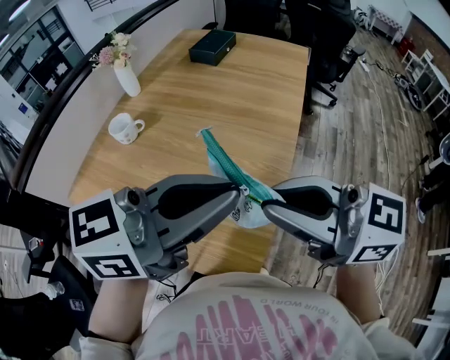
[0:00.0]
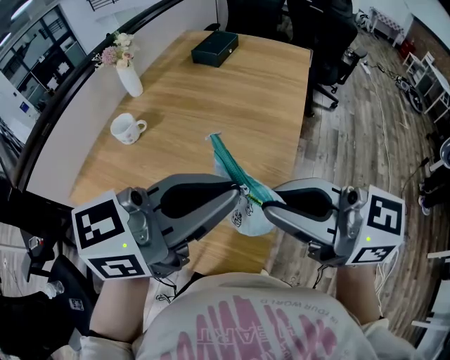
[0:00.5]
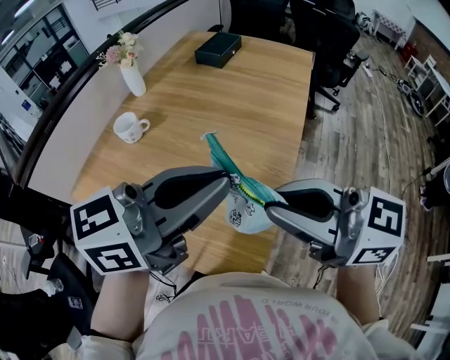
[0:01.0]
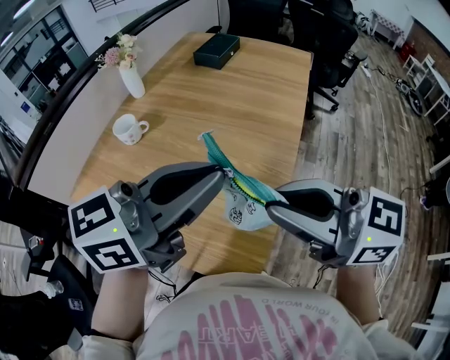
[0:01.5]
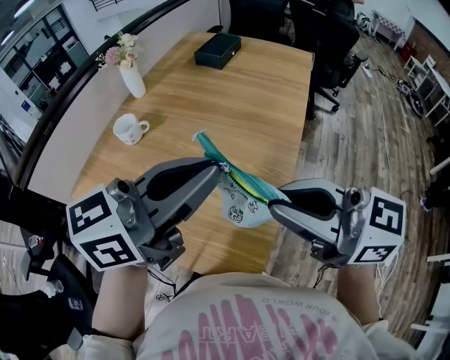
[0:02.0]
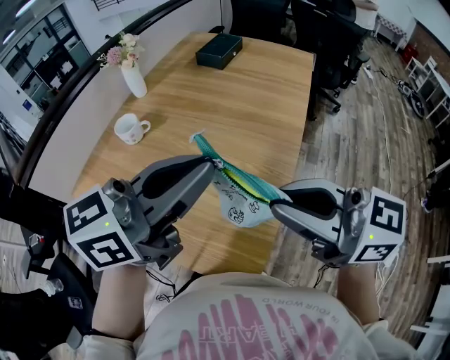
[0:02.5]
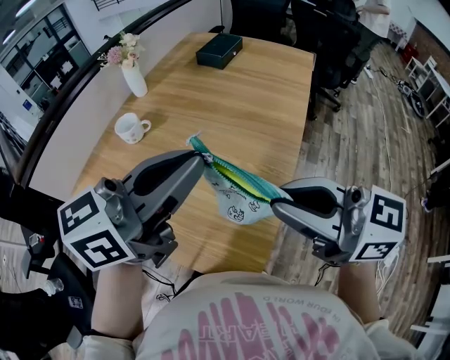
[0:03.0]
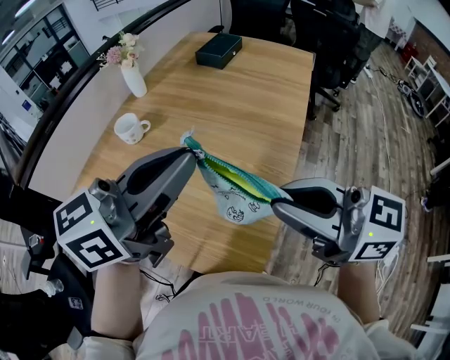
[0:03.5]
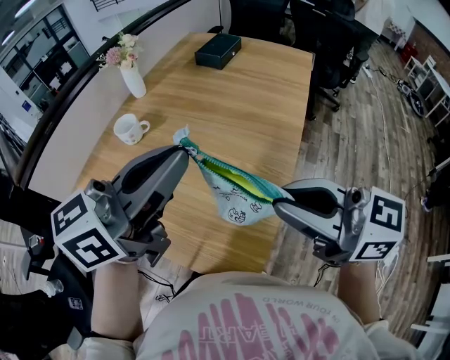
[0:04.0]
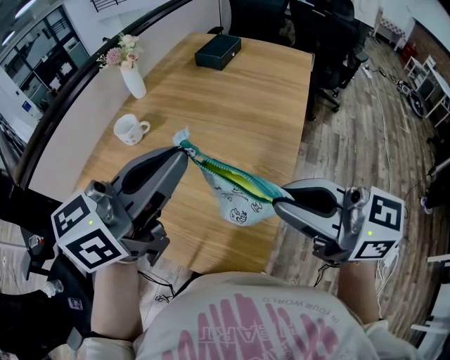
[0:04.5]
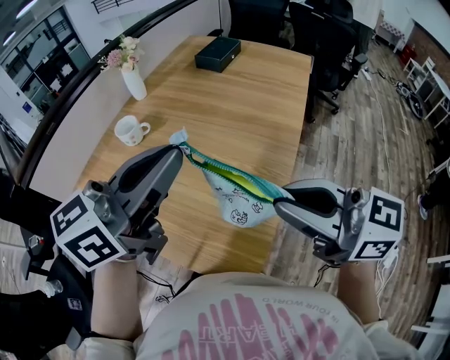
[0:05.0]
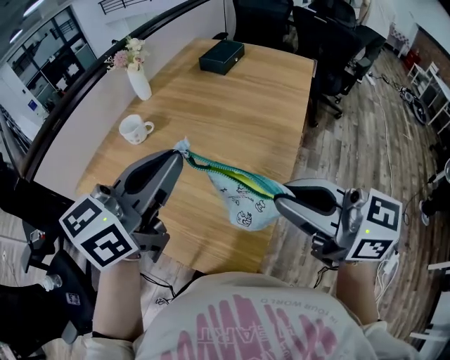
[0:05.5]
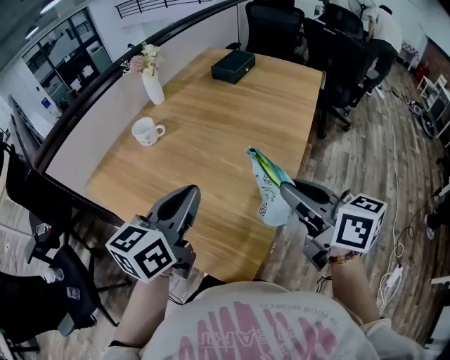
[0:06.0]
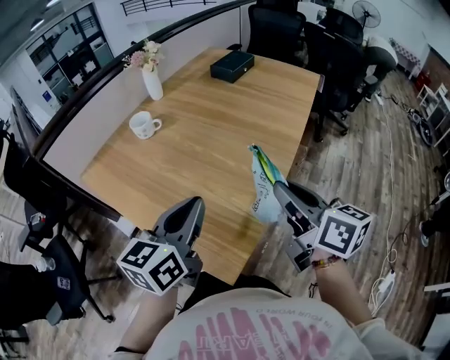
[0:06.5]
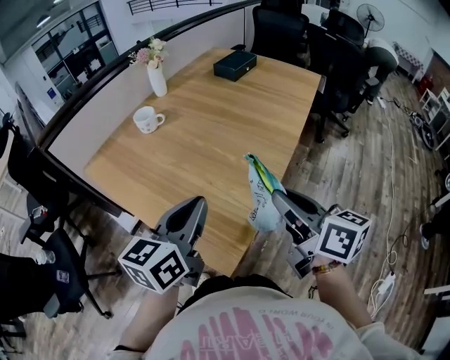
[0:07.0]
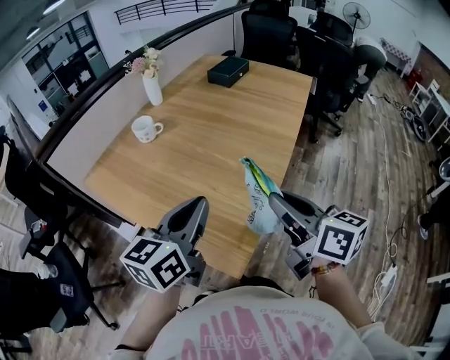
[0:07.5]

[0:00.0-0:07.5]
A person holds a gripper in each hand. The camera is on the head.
0:00.0 to 0:02.0: The grippers stay close to where they were, moving slightly.
0:02.0 to 0:04.0: The grippers move only a little.
0:04.0 to 0:05.5: The grippers make only small movements.
0:05.5 to 0:07.5: The left gripper is displaced backward and downward by roughly 15 cm. Meanwhile the right gripper travels downward by about 5 cm, and swivels approximately 30 degrees.

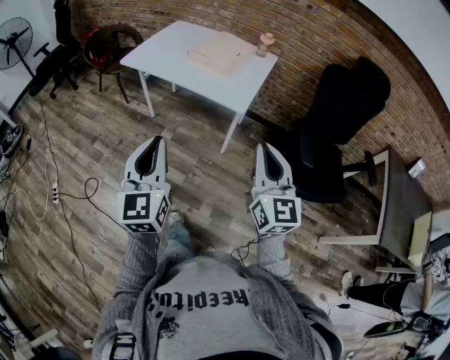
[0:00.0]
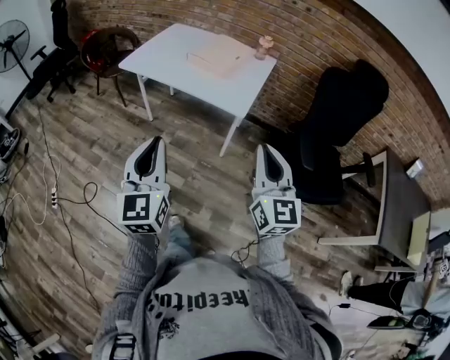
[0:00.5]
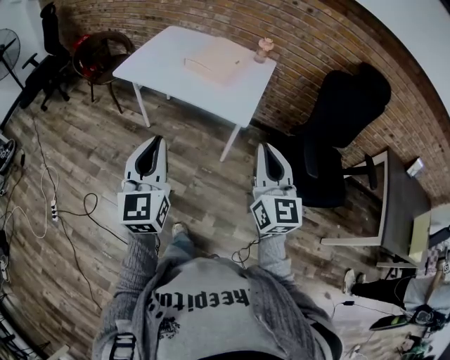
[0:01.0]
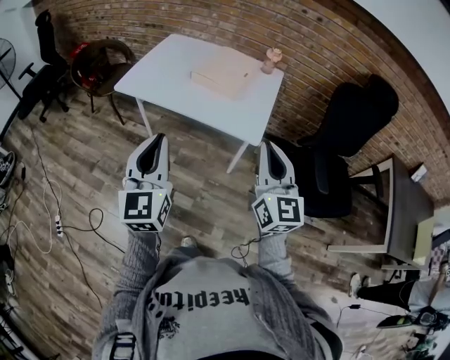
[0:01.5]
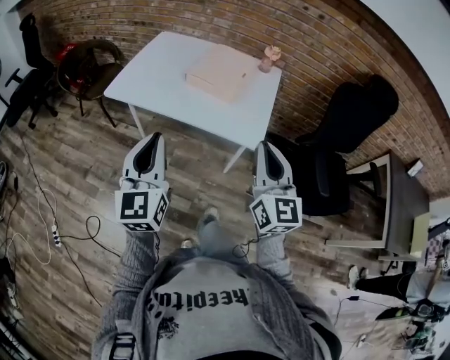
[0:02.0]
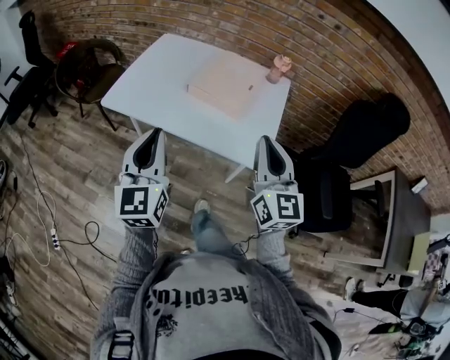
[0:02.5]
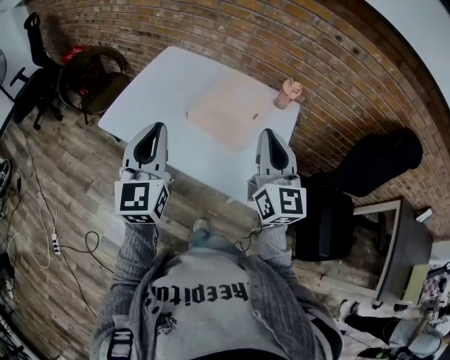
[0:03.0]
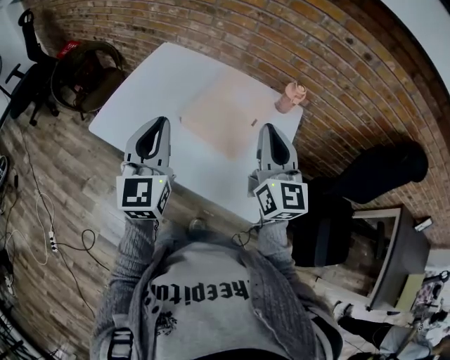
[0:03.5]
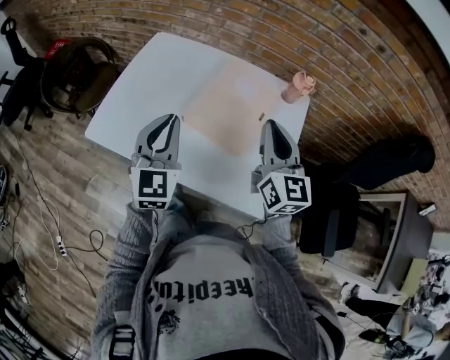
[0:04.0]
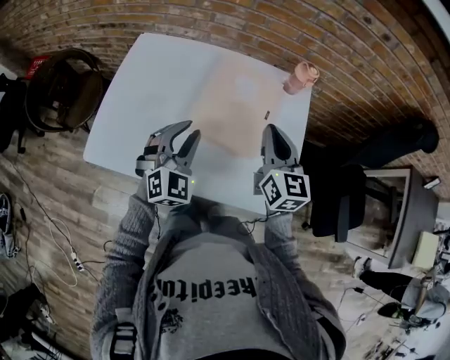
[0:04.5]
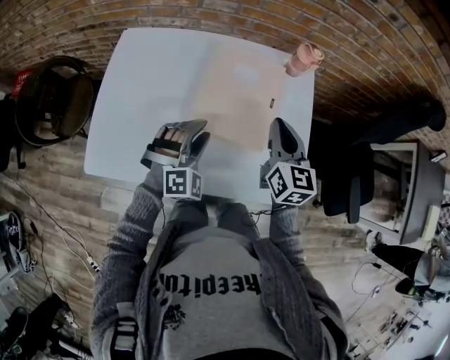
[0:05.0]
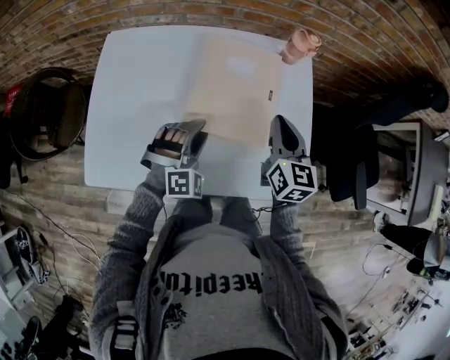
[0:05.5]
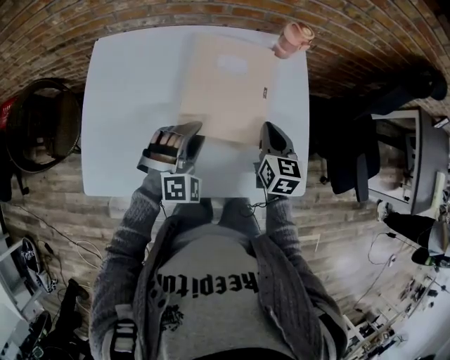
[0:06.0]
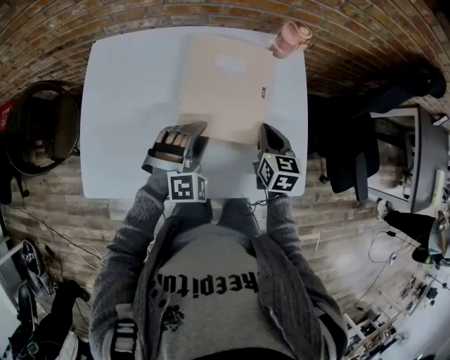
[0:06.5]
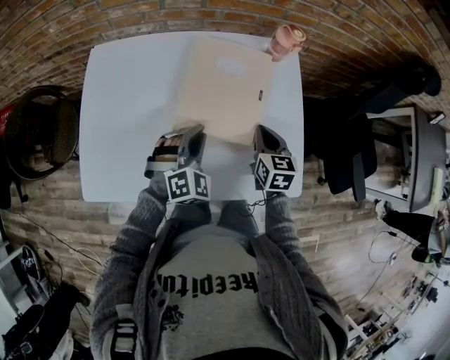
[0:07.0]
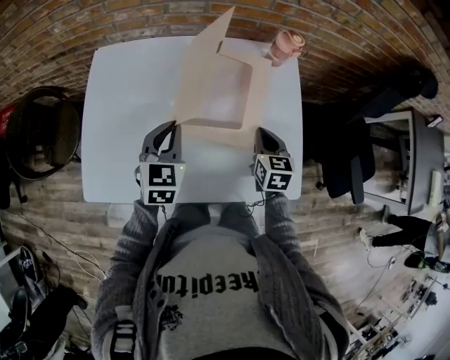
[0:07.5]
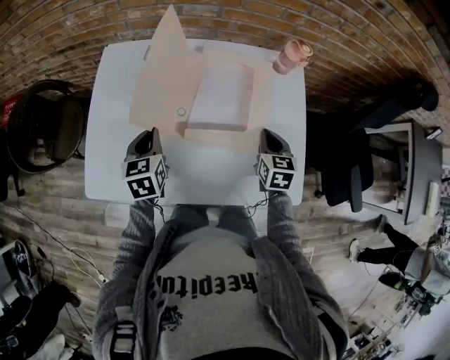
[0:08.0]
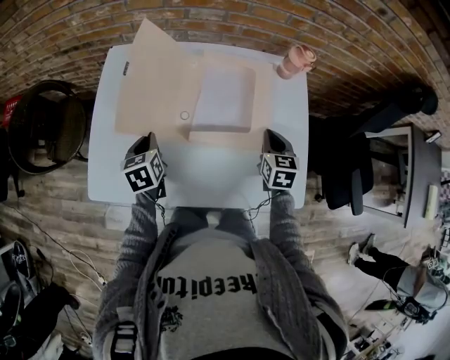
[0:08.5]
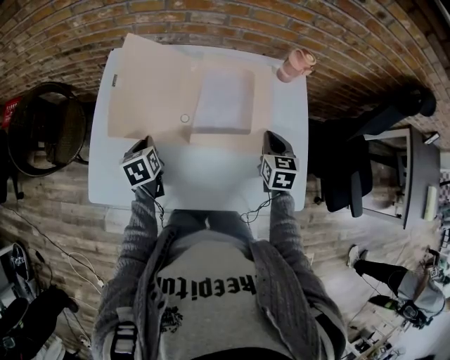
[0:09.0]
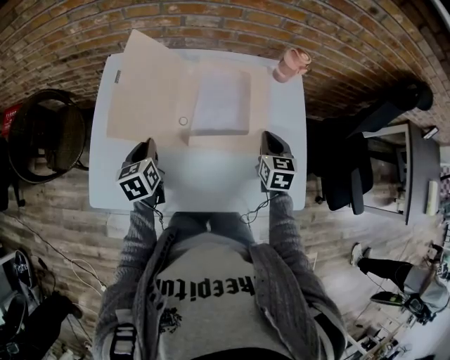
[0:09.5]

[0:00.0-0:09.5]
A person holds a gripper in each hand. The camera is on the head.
0:00.0 to 0:02.0: Both grippers travel together forward and to the left, approximately 25 cm.
0:02.0 to 0:04.0: Both grippers travel together forward, about 40 cm.
0:04.0 to 0:05.5: The two grippers go roughly 15 cm downward. The right gripper rotates approximately 30 degrees, while the left gripper rolls clockwise, seen from behind, by roughly 60 degrees, and opens its fingers.
0:05.5 to 0:07.5: The left gripper shifts about 10 cm to the left and upward, rotates around the line of its fingers by approximately 60 degrees, counterclockwise from behind, and closes its fingers. The right gripper travels downward by about 10 cm.
0:07.5 to 0:09.5: The left gripper is displaced to the left and downward by some 15 cm, and turns by approximately 40 degrees.

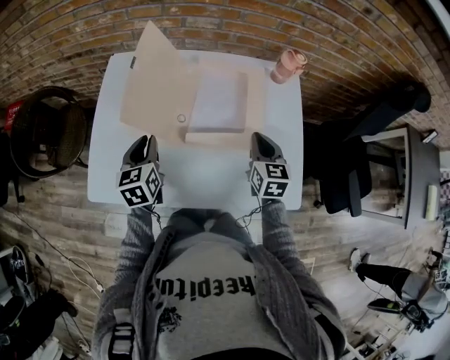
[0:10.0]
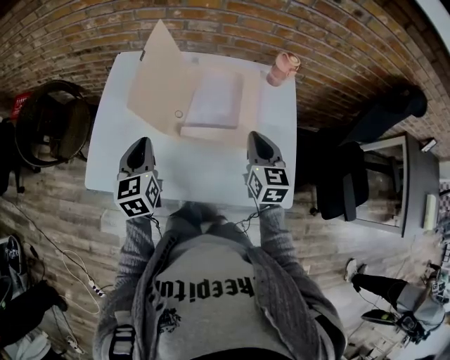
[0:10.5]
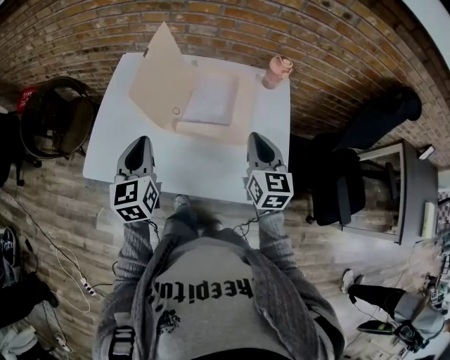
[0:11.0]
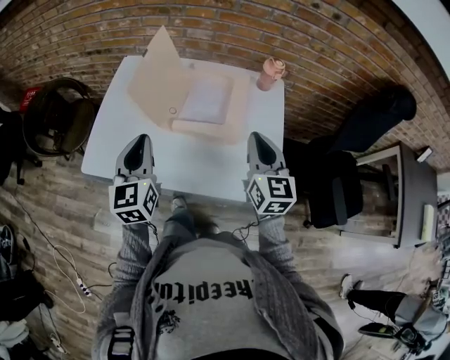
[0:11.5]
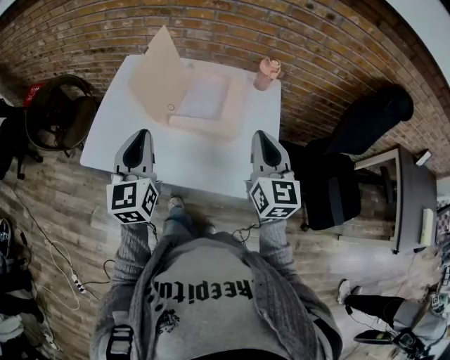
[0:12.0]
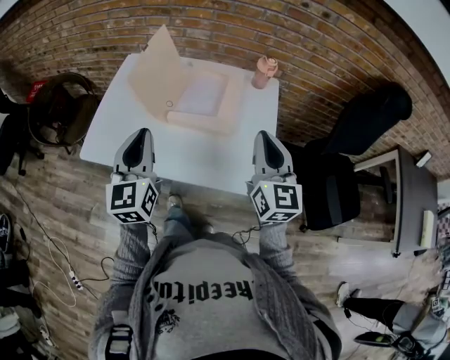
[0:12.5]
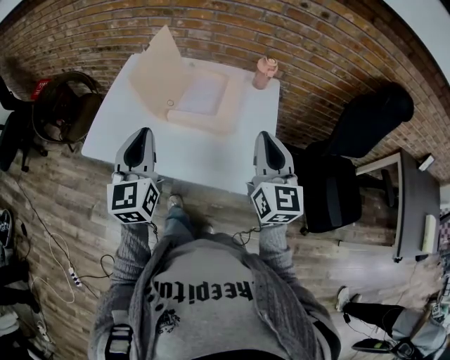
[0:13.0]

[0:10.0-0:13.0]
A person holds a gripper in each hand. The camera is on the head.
0:10.0 to 0:11.5: The grippers both shift upward and backward by roughly 20 cm. The right gripper rotates roughly 20 degrees; the left gripper changes its angle by about 20 degrees.
0:11.5 to 0:13.0: The left gripper heads backward, to the right and upward, covering approximately 10 cm. Meanwhile the right gripper heads backward, upward and to the right, covering about 10 cm.

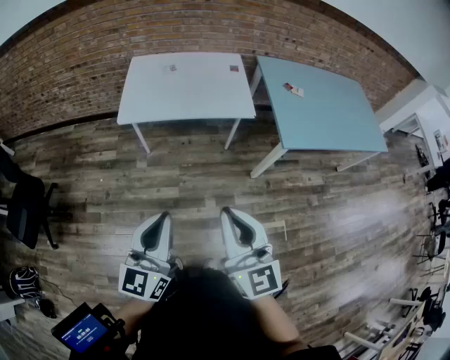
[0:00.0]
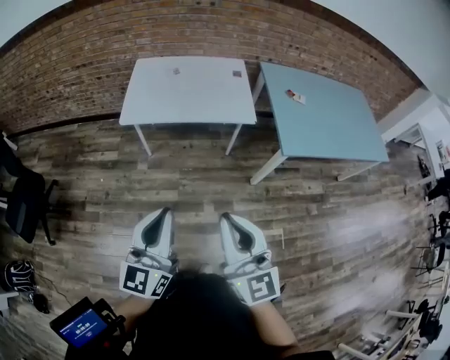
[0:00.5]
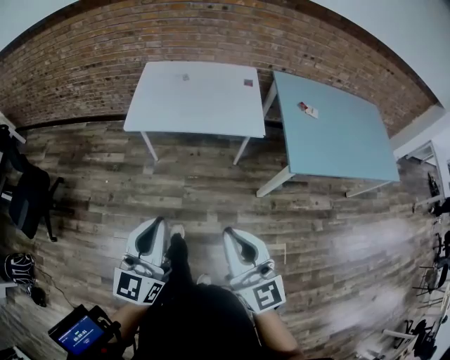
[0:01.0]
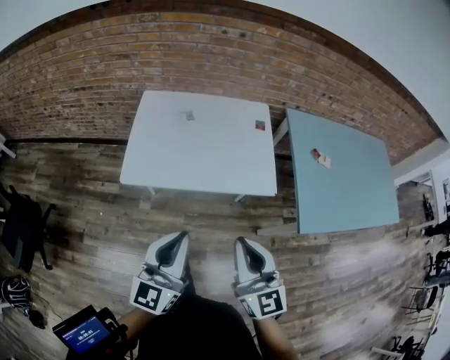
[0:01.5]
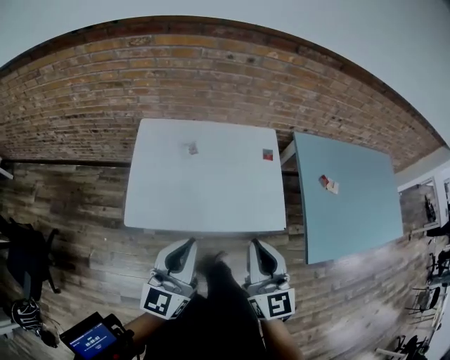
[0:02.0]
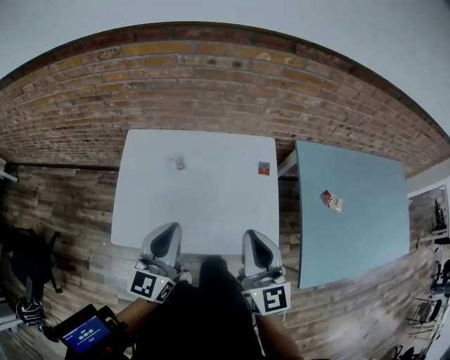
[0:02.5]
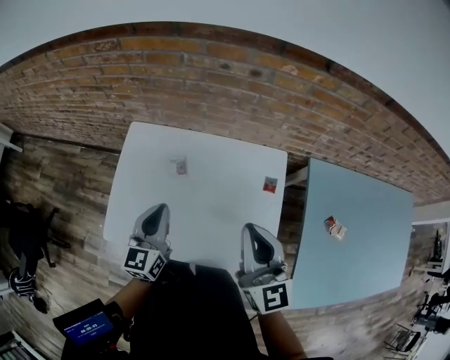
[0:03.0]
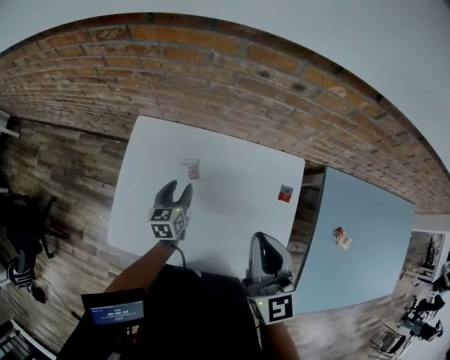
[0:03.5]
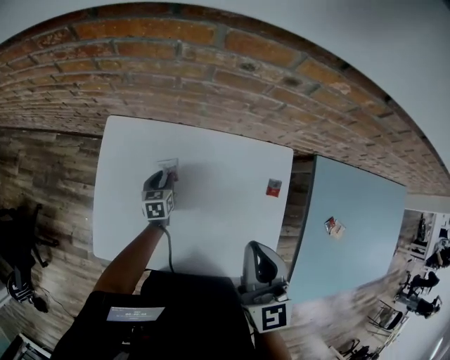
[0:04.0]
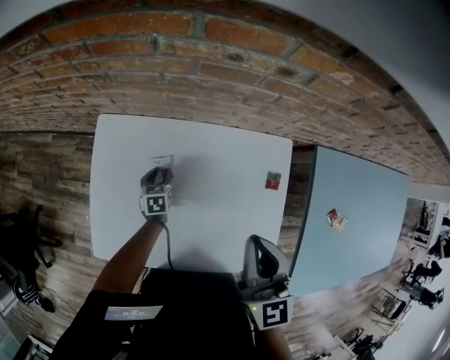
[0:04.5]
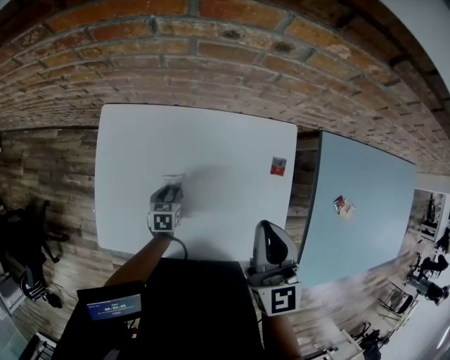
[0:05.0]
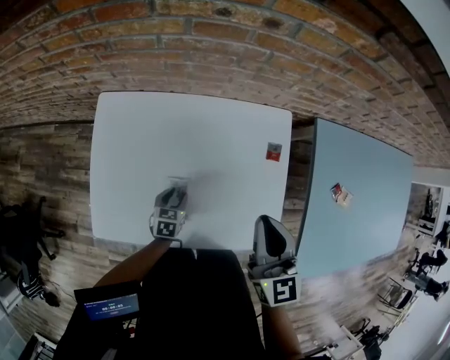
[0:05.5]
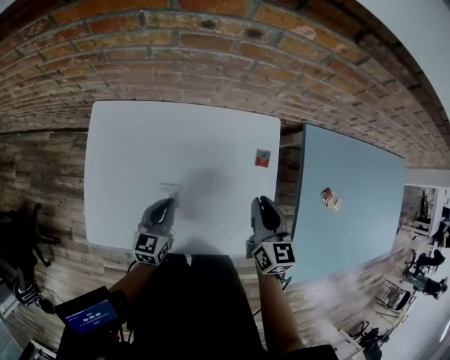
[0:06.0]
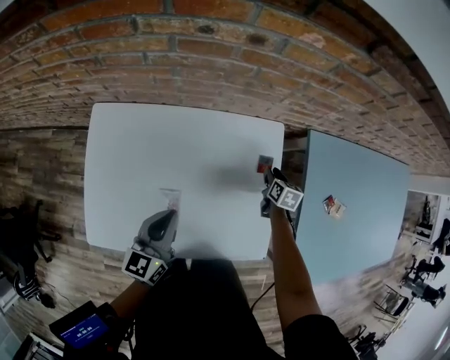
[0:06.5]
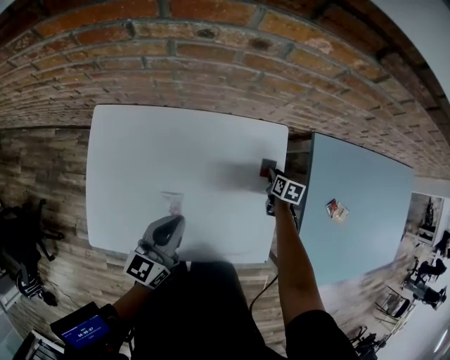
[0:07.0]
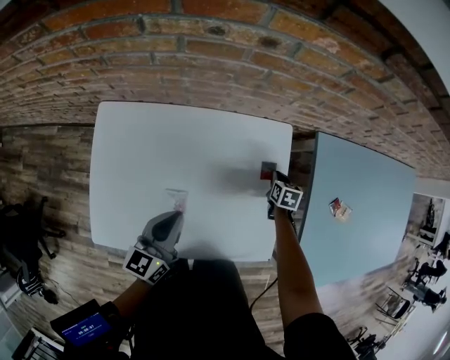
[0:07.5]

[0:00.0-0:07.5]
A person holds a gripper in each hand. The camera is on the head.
0:00.0 to 0:02.0: The two grippers travel together, forward, roughly 40 cm.
0:02.0 to 0:04.0: The left gripper moves forward and downward, approximately 60 cm, tips its fingers downward by roughly 50 degrees, and opens. Meanwhile the right gripper travels forward by about 30 cm.
0:04.0 to 0:05.5: The left gripper moves backward and to the right, roughly 20 cm, and turns by roughly 20 degrees. Meanwhile the right gripper heads to the right, covering some 5 cm.
0:05.5 to 0:07.5: The left gripper heads upward, covering about 20 cm, points its fingers about 40 degrees further upward, and closes up. Meanwhile the right gripper heads downward, forward and to the right, covering roughly 40 cm, tips its fingers downward by approximately 40 degrees, and opens and closes again.
